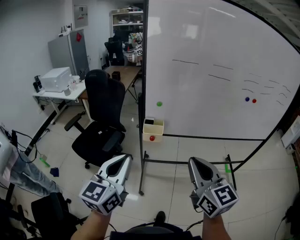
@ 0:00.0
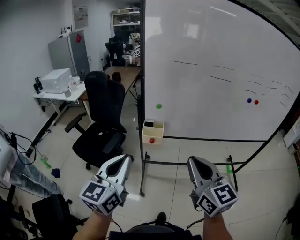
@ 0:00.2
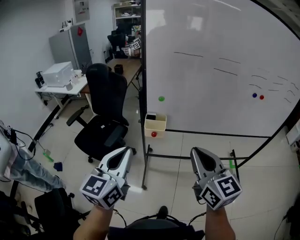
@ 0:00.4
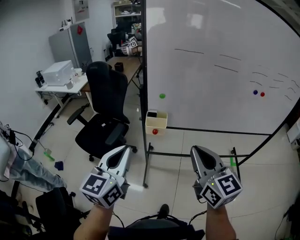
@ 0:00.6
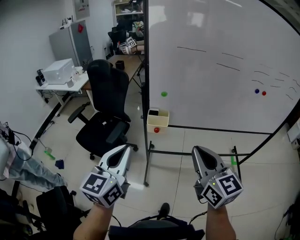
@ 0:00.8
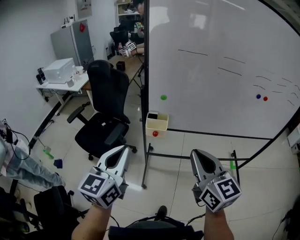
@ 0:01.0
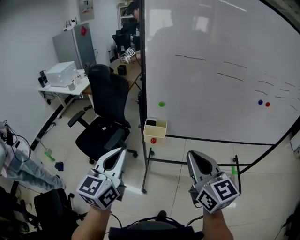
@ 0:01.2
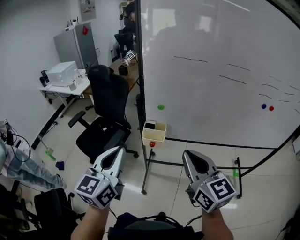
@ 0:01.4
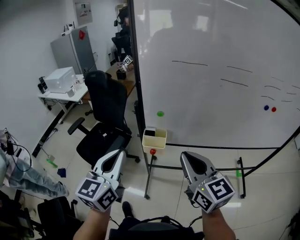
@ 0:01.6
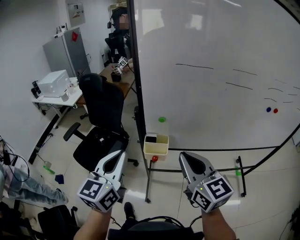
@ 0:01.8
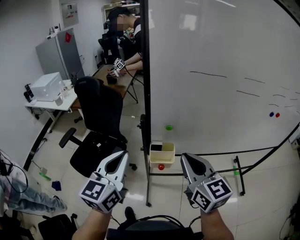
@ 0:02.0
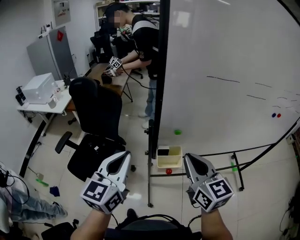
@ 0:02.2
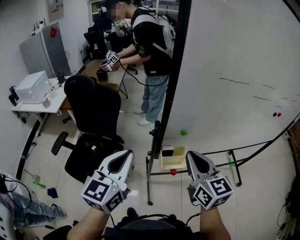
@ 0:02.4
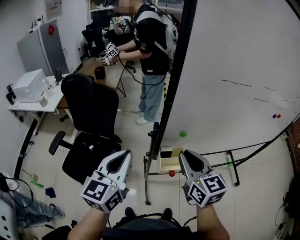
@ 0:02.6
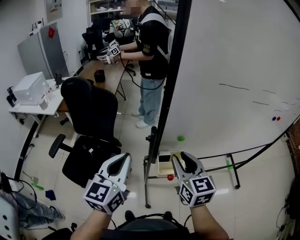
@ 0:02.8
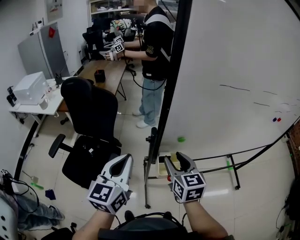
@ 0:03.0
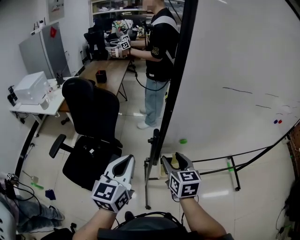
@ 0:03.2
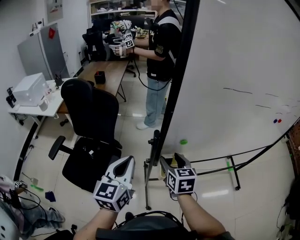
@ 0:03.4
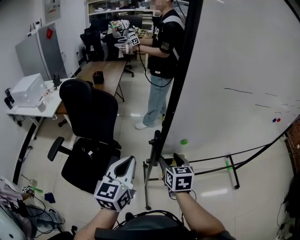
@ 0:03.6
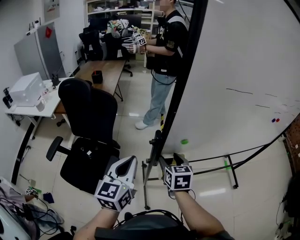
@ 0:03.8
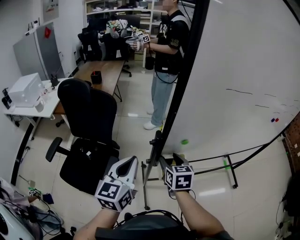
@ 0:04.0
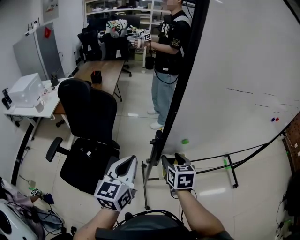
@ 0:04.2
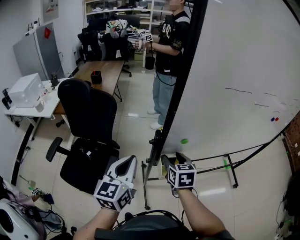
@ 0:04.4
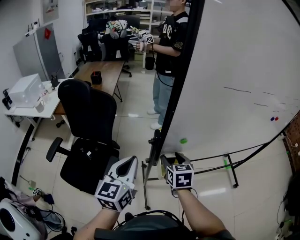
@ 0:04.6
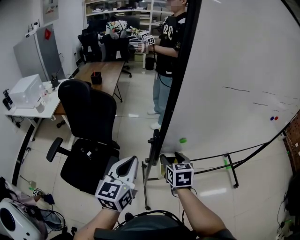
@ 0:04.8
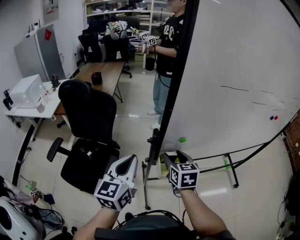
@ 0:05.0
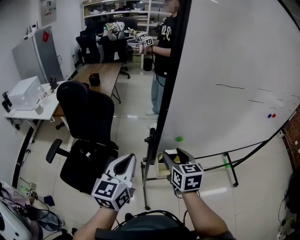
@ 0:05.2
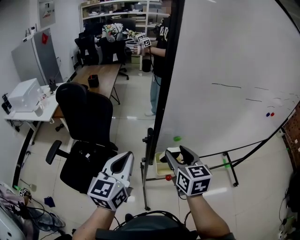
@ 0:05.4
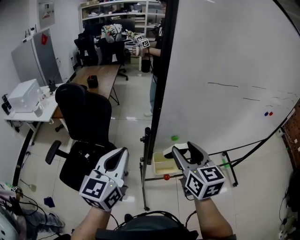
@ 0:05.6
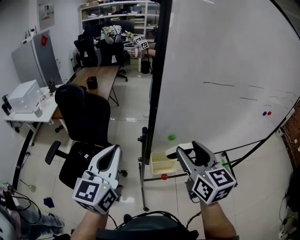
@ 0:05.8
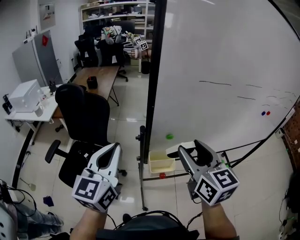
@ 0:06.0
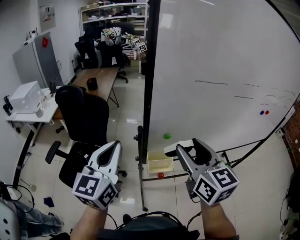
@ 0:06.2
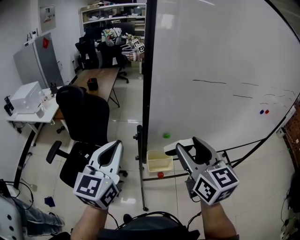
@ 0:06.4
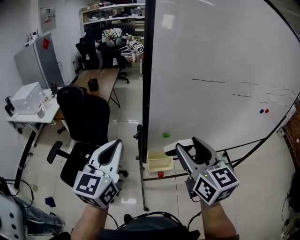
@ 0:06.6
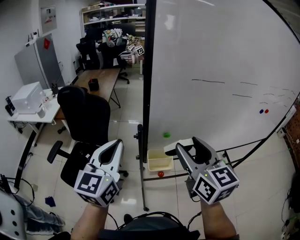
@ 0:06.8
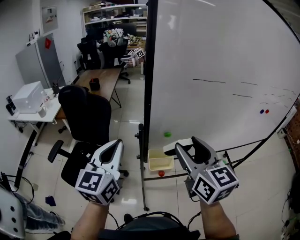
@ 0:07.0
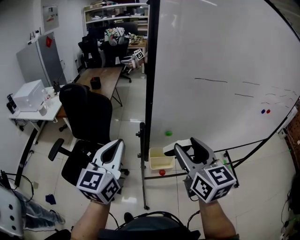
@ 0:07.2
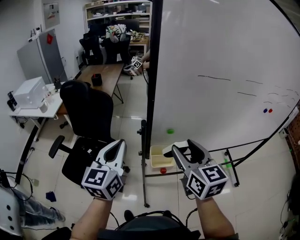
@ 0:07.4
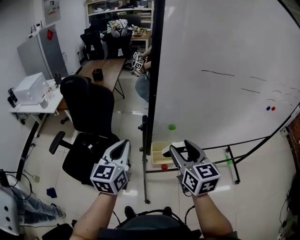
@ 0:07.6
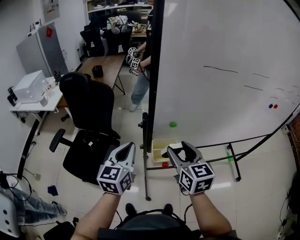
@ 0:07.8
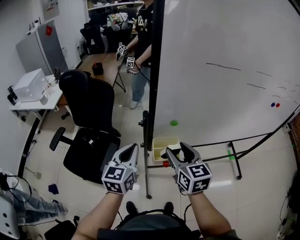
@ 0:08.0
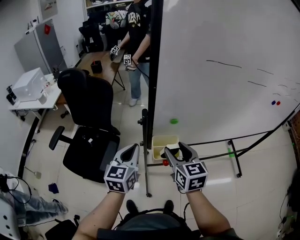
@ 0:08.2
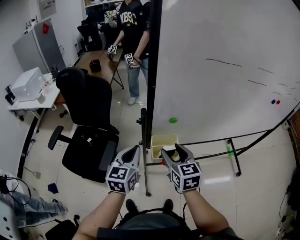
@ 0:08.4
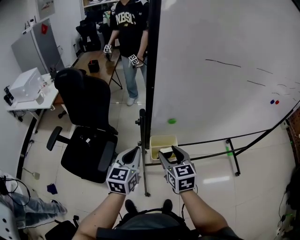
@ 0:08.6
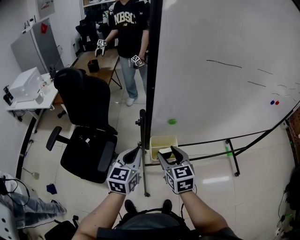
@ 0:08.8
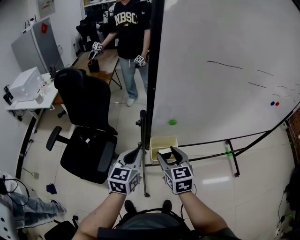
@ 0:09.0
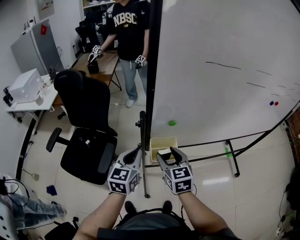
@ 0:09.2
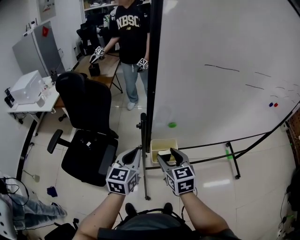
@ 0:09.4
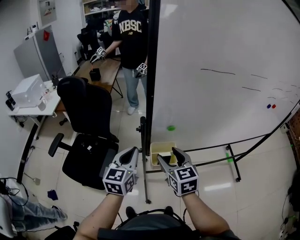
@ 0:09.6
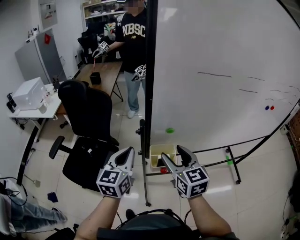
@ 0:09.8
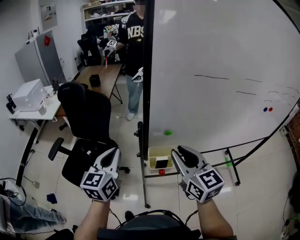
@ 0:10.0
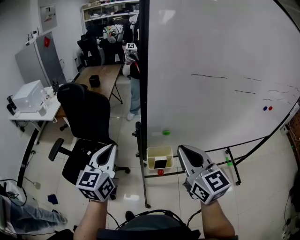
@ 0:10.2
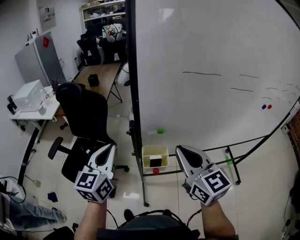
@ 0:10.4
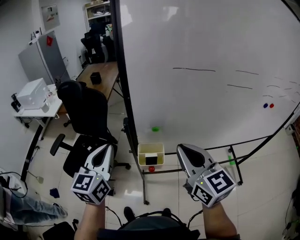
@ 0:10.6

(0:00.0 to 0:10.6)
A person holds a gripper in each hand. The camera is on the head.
0:00.0 - 0:01.6: Both grippers travel together forward, about 15 cm.
0:01.6 - 0:03.0: The right gripper travels forward, to the left and downward by some 30 cm, changes its angle by some 30 degrees, and opens up; the left gripper is displaced forward and to the left by roughly 25 cm.
0:03.0 - 0:04.6: The right gripper shifts about 10 cm downward.
0:04.6 - 0:06.0: The right gripper is displaced upward by roughly 25 cm, and turns by approximately 30 degrees. Meanwhile the left gripper travels upward by approximately 10 cm.
0:06.0 - 0:07.6: Both grippers move downward, approximately 10 cm.
0:07.6 - 0:09.0: Both grippers move downward, roughly 10 cm.
0:09.0 - 0:10.6: The left gripper shifts some 15 cm upward. The right gripper travels upward and to the right by roughly 25 cm, turns by roughly 20 degrees, and closes up.

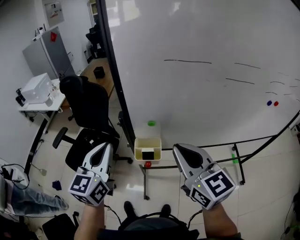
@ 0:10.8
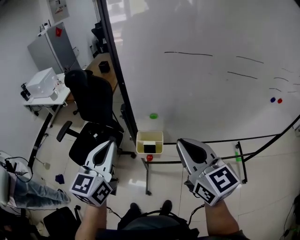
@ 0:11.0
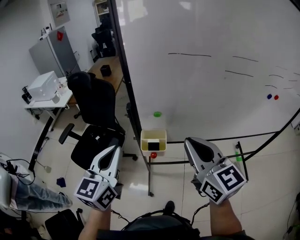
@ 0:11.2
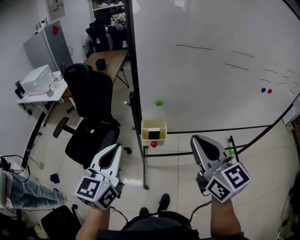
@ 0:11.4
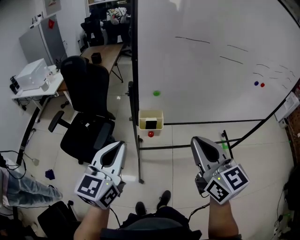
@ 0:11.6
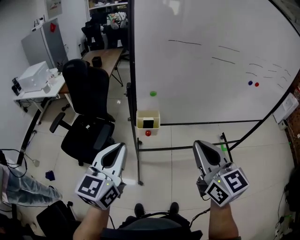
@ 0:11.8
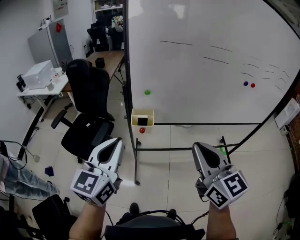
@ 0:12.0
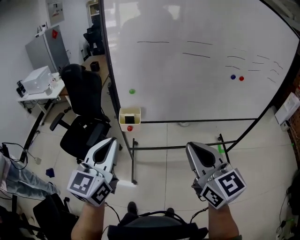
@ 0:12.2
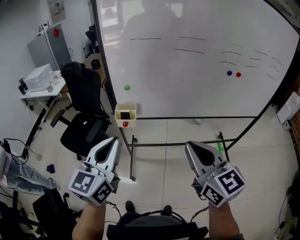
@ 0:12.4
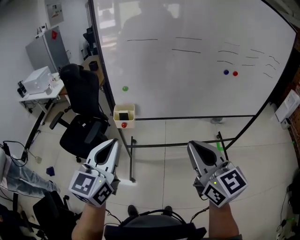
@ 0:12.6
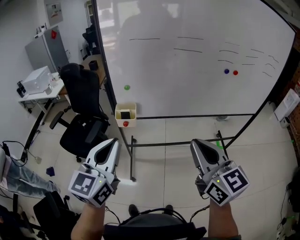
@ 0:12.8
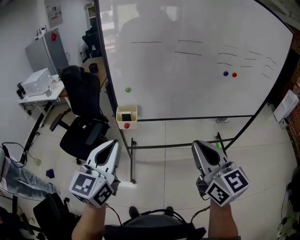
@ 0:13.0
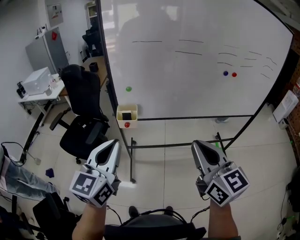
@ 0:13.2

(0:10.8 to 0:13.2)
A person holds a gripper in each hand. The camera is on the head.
0:10.8 - 0:12.0: Both grippers travel together backward, approximately 25 cm.
0:12.0 - 0:13.2: Both grippers travel together to the right and backward, approximately 15 cm.

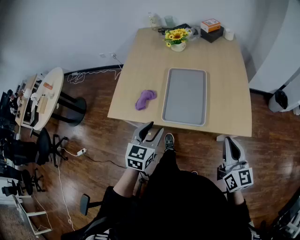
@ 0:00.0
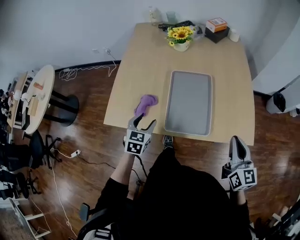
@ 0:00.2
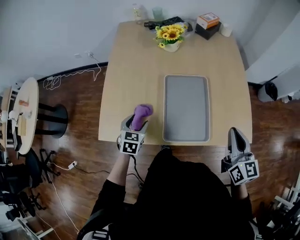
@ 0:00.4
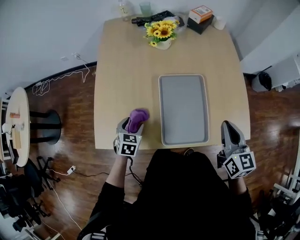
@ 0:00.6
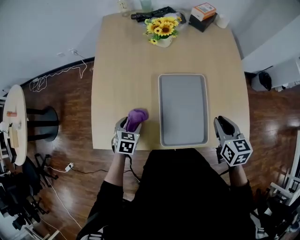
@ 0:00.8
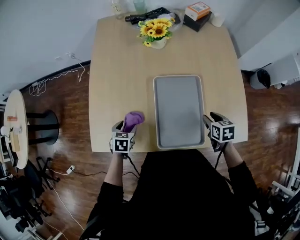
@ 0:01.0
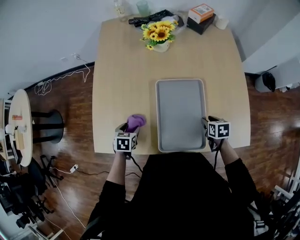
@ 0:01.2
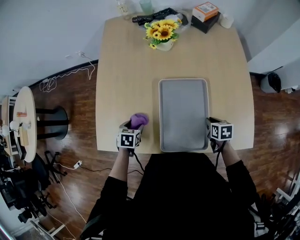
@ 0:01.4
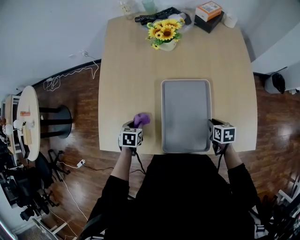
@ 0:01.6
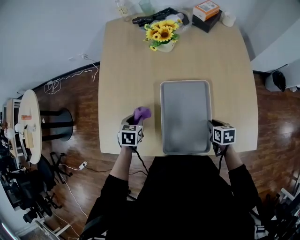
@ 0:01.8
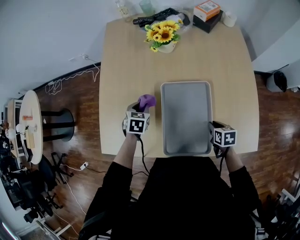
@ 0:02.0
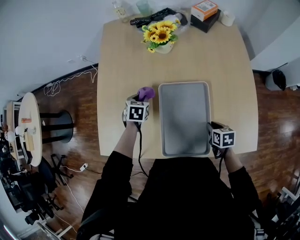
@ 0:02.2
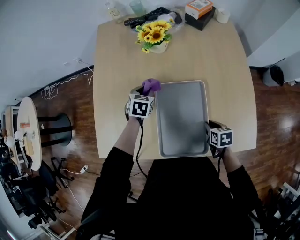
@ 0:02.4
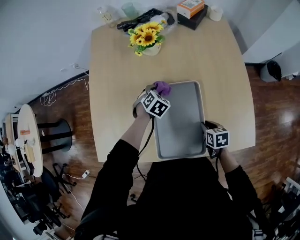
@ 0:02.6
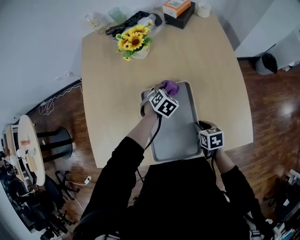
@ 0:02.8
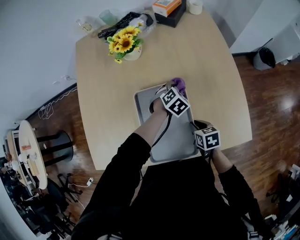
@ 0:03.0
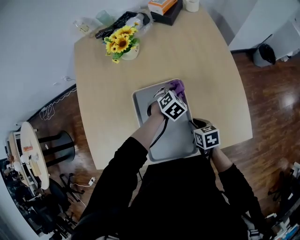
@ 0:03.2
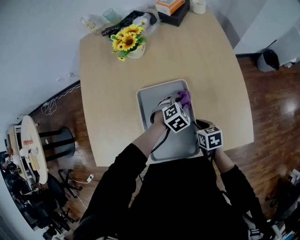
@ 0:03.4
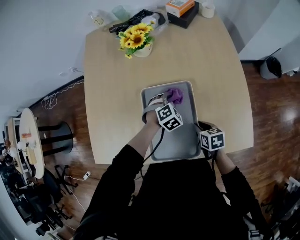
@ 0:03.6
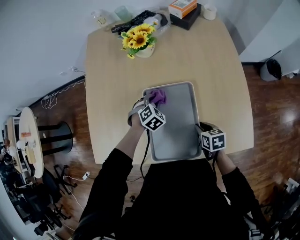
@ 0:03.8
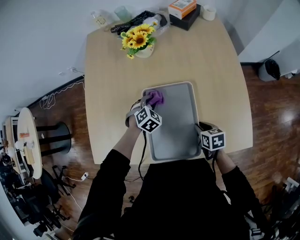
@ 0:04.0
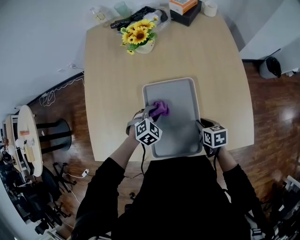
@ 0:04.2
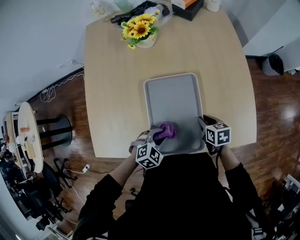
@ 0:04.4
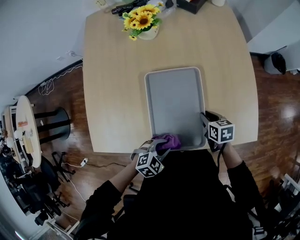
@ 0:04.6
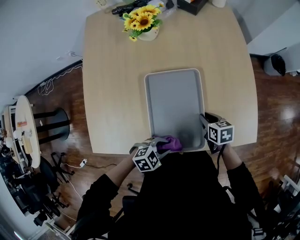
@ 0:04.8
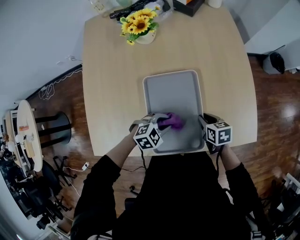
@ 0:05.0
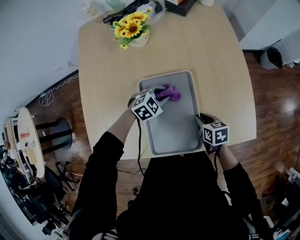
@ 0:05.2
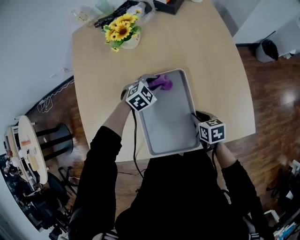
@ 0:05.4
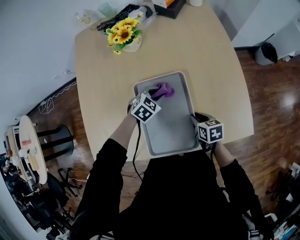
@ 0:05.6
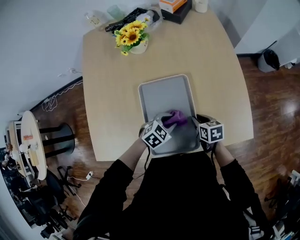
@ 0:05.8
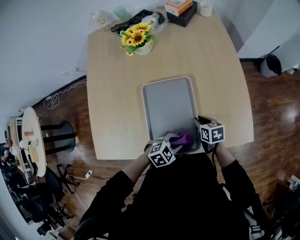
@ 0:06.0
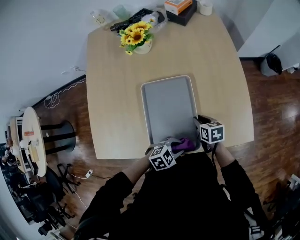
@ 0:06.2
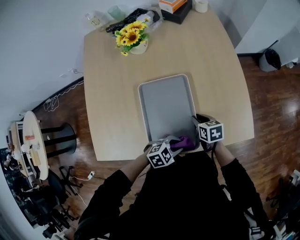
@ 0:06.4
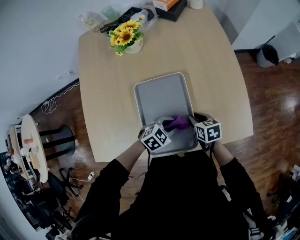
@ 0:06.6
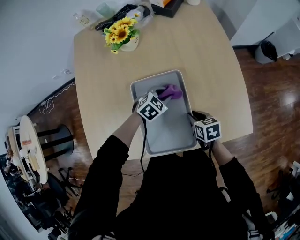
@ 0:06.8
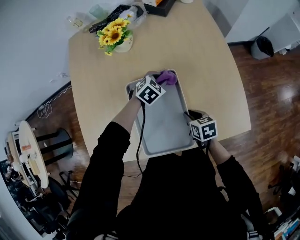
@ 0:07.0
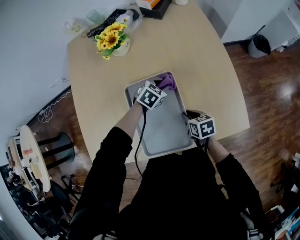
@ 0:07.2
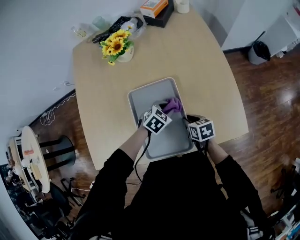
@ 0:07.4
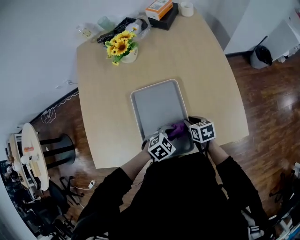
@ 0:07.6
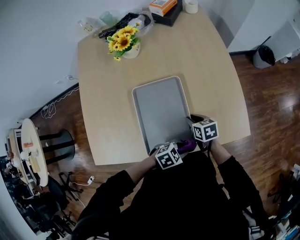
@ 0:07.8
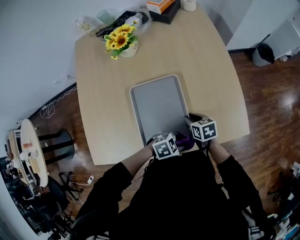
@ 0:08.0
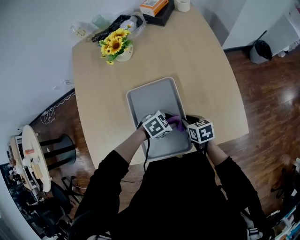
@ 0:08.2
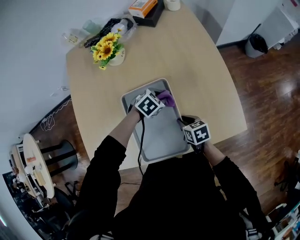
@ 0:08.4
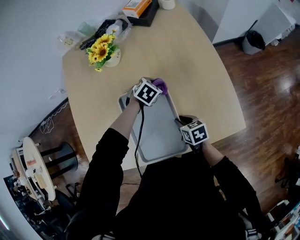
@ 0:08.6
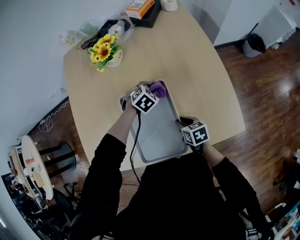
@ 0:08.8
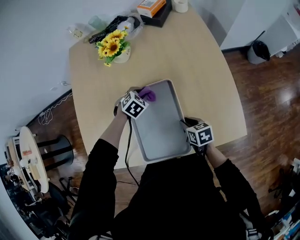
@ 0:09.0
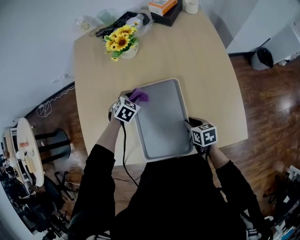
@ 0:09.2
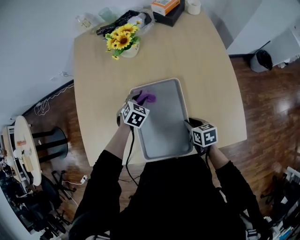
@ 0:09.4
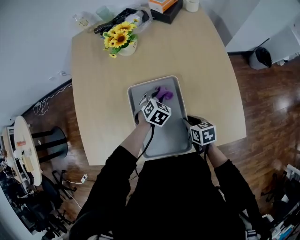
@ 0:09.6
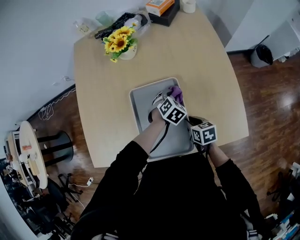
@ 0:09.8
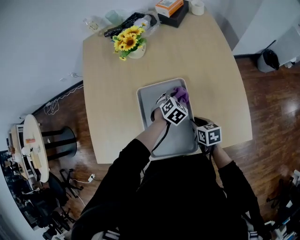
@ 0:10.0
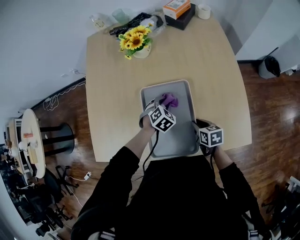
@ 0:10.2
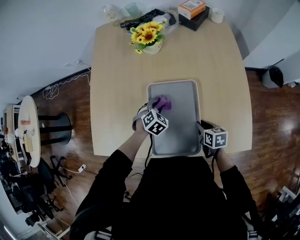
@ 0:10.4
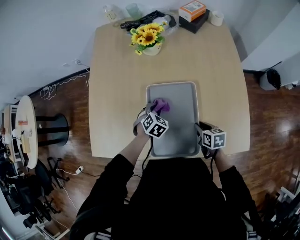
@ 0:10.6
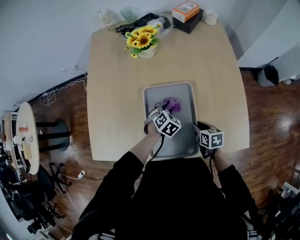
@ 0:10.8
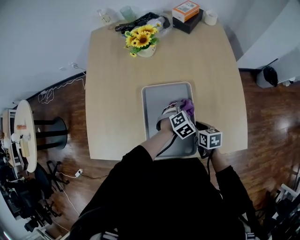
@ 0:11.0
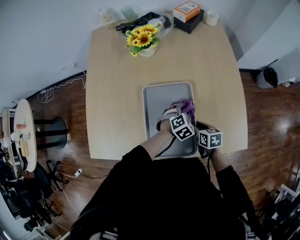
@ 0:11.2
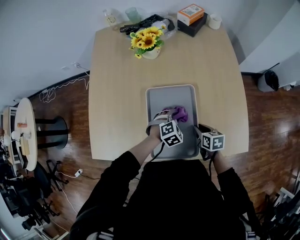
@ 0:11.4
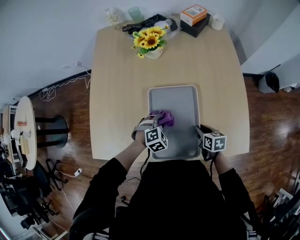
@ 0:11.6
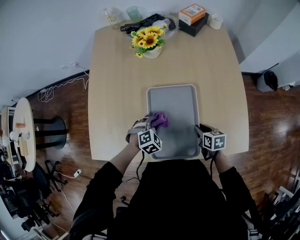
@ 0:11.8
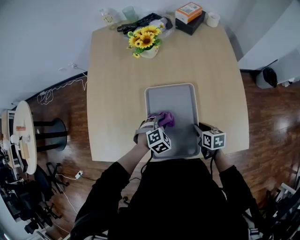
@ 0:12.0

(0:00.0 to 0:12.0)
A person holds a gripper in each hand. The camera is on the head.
0:00.0 - 0:01.6: The left gripper shifts some 35 cm forward, downward and to the left, points its fingers some 40 degrees further downward, and opens, then closes again; the right gripper goes approximately 40 cm downward and forward, tilts its fingers some 50 degrees downward, and opens and closes again.
0:01.6 - 0:03.0: The left gripper is displaced to the right by some 40 cm, and rolls clockwise, seen from behind, by approximately 50 degrees.
0:03.0 - 0:04.4: The left gripper moves forward and backward over roughly 25 cm, changing direction 2 times.
0:07.6 - 0:09.0: The left gripper changes place by approximately 25 cm, and rotates some 20 degrees.
0:09.0 - 0:10.4: The left gripper swings left and right, some 20 cm each way, with 2 reversals.
0:10.4 - 0:12.0: The left gripper swings left and right, roughly 20 cm each way, with 2 reversals.
